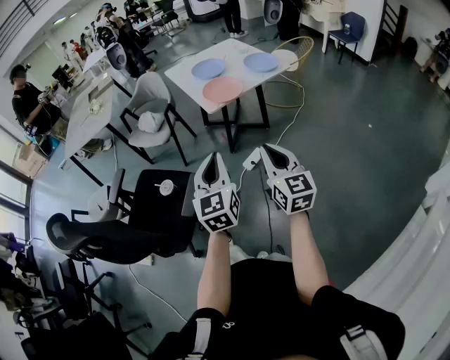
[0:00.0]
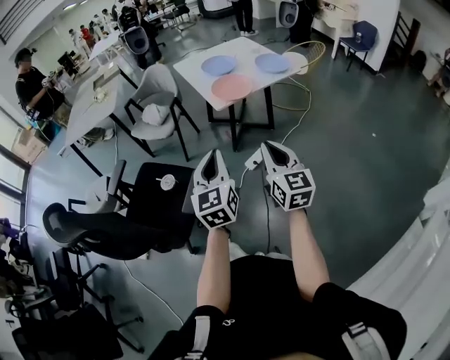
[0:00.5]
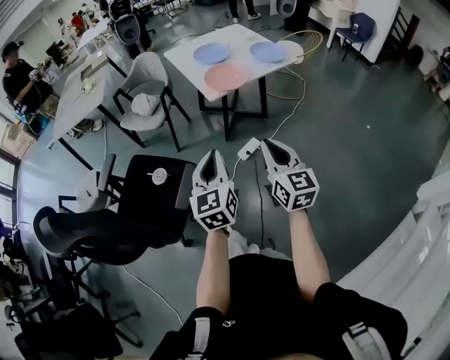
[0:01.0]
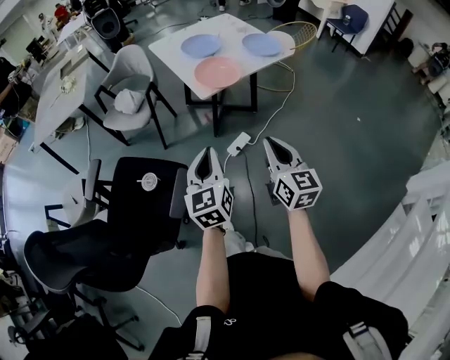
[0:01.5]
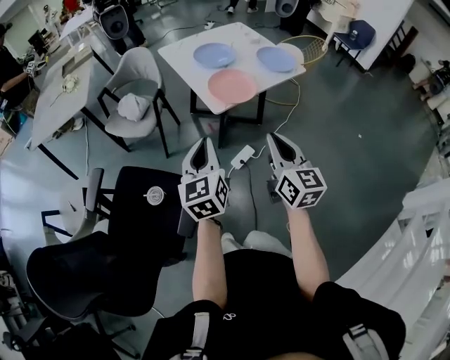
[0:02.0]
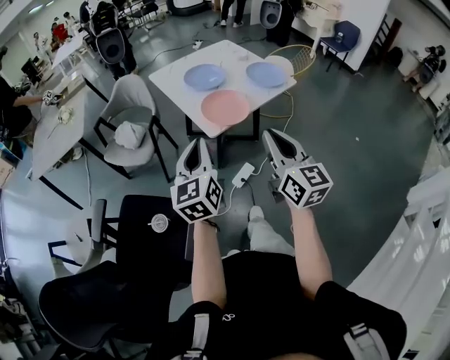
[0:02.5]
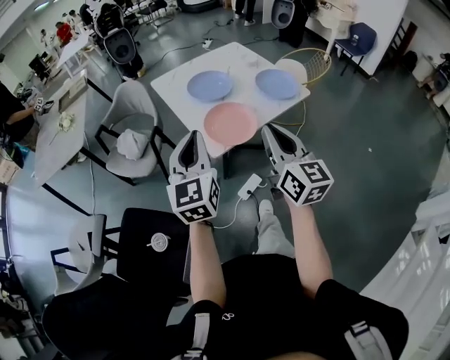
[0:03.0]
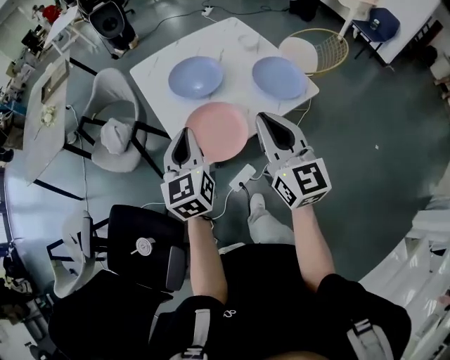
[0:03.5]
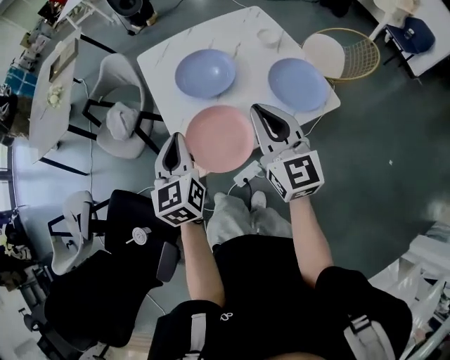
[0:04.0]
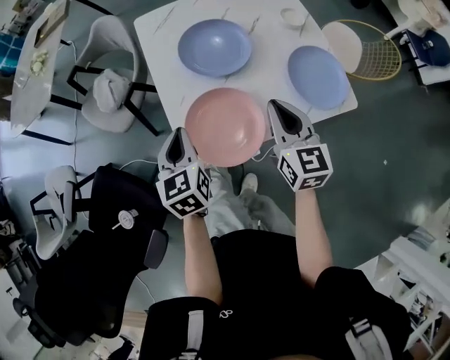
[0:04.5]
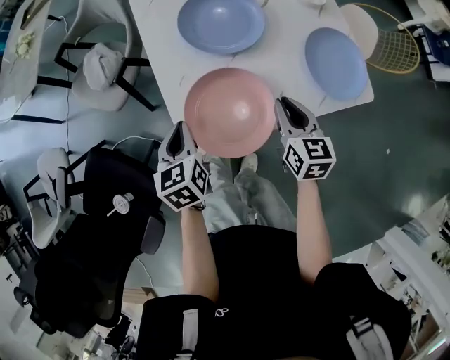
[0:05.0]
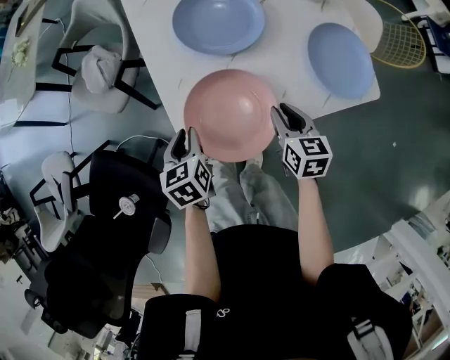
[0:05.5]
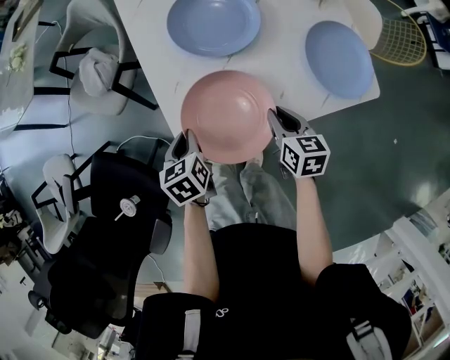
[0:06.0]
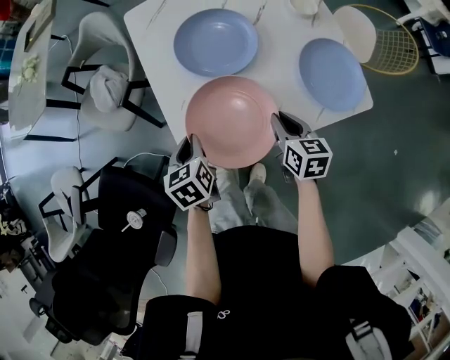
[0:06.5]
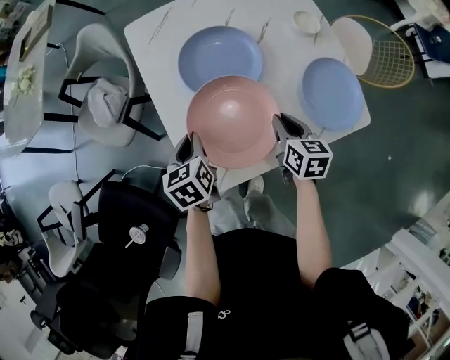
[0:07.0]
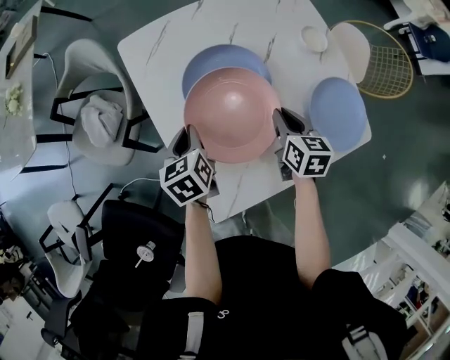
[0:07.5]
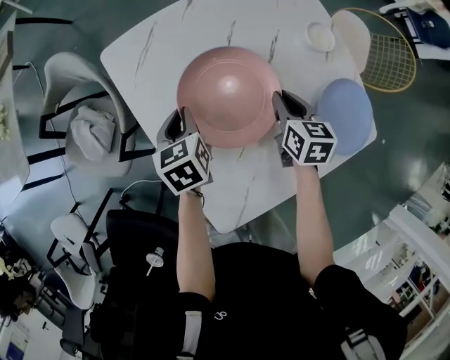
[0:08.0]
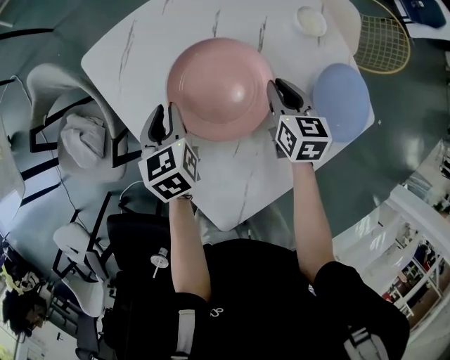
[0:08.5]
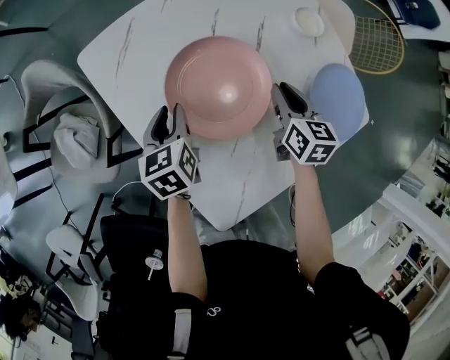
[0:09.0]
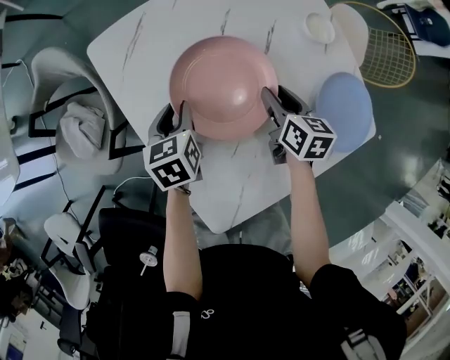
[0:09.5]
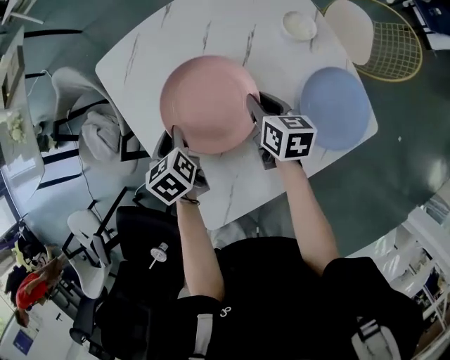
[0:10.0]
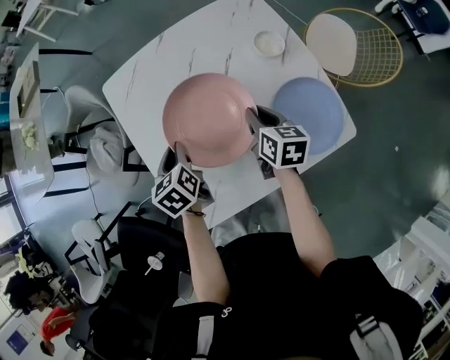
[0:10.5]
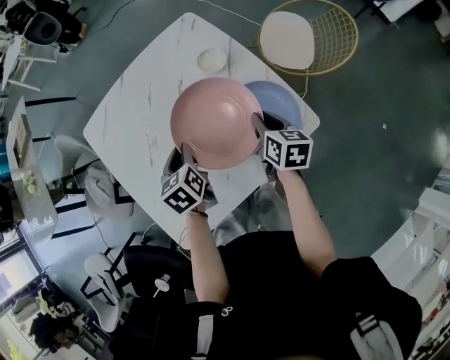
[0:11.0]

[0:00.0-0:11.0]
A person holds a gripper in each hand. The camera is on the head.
0:00.0 to 0:02.0: The left gripper moves forward and to the left, roughly 25 cm, while the right gripper moves forward, approximately 20 cm.
0:02.0 to 0:03.5: The grippers both shift forward by roughly 30 cm.
0:03.5 to 0:05.5: The grippers both shift downward by about 30 cm. The left gripper tips its fingers downward by about 40 degrees; the right gripper angles its fingers downward, by about 40 degrees, and opens its fingers.
0:05.5 to 0:07.5: Both grippers move forward, roughly 20 cm.
0:07.5 to 0:09.0: Both grippers move forward, roughly 10 cm. The left gripper opens up.
0:09.0 to 0:11.0: The left gripper shifts roughly 20 cm to the right. The right gripper shifts roughly 20 cm to the right and backward, and opens, then closes again.

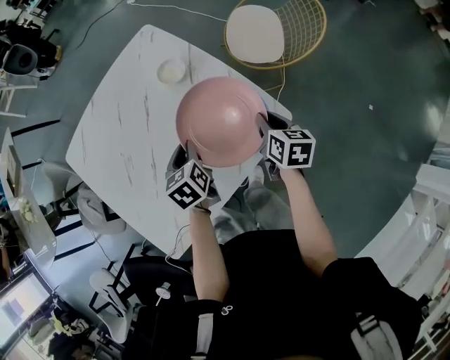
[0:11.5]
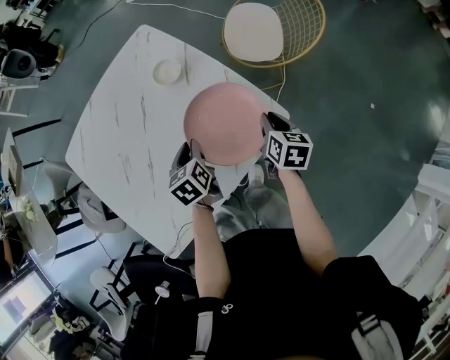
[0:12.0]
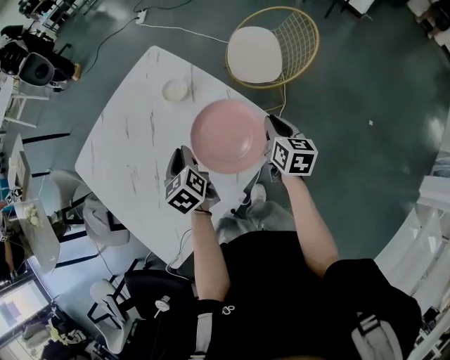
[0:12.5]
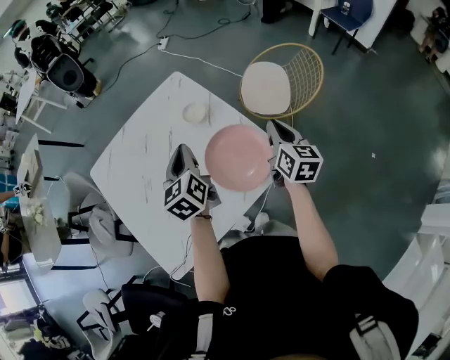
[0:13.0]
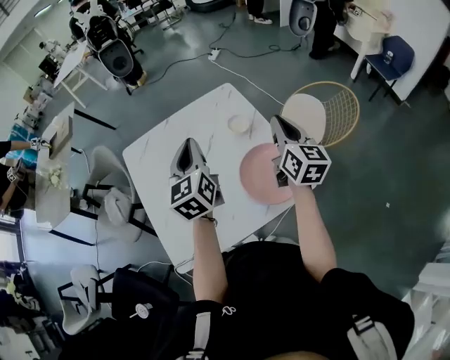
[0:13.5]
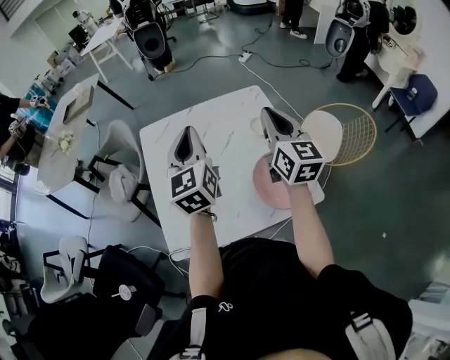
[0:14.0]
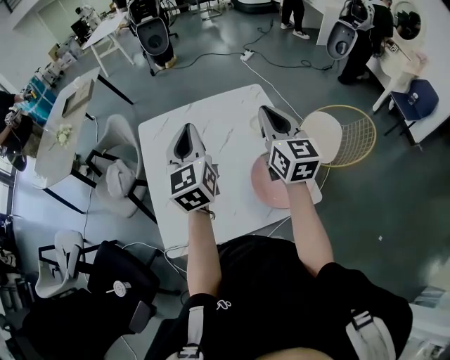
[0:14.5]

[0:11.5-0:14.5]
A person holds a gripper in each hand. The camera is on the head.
0:11.5 to 0:13.0: Both grippers move upward, roughly 15 cm. The right gripper turns by roughly 20 degrees, while the left gripper rotates roughly 30 degrees.
0:13.0 to 0:14.5: Both grippers travel together to the left and upward, about 25 cm. The left gripper rotates some 30 degrees. Meanwhile the right gripper rotates roughly 40 degrees.

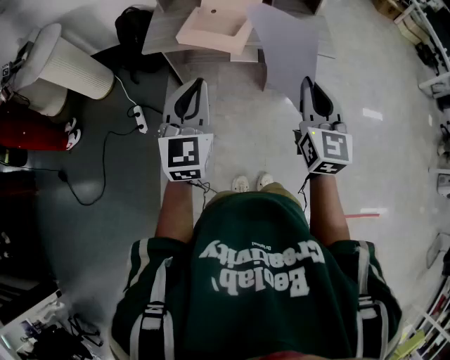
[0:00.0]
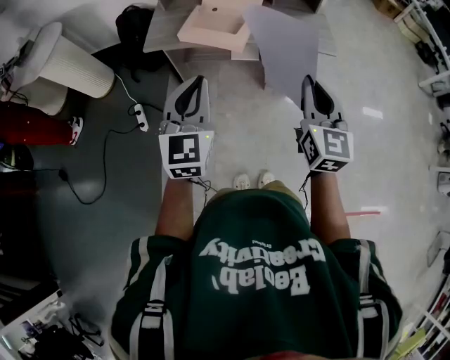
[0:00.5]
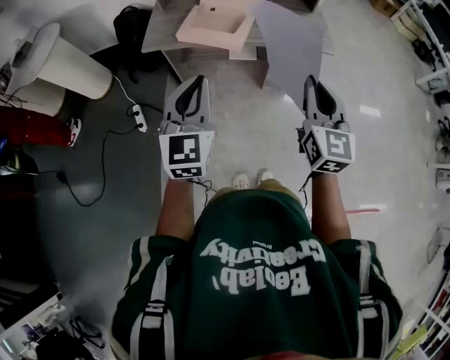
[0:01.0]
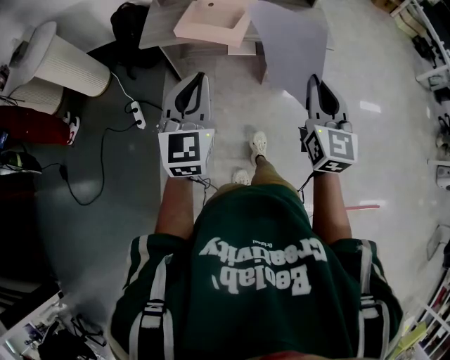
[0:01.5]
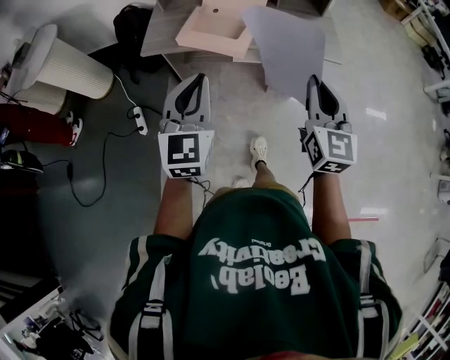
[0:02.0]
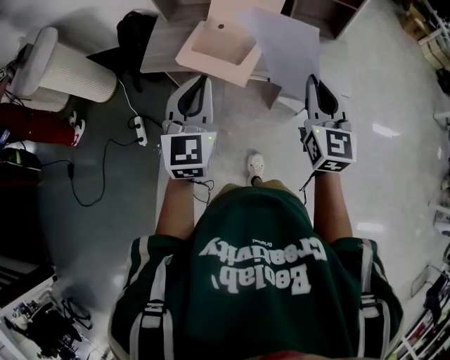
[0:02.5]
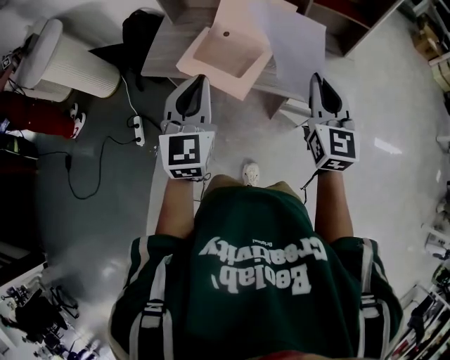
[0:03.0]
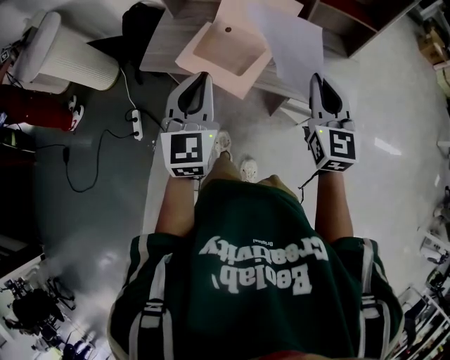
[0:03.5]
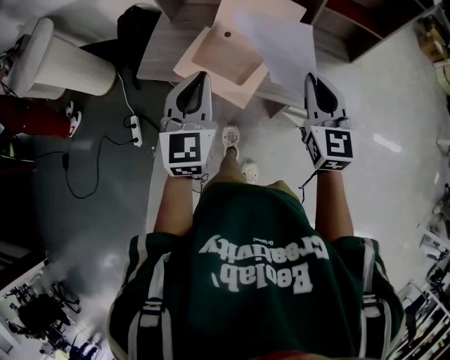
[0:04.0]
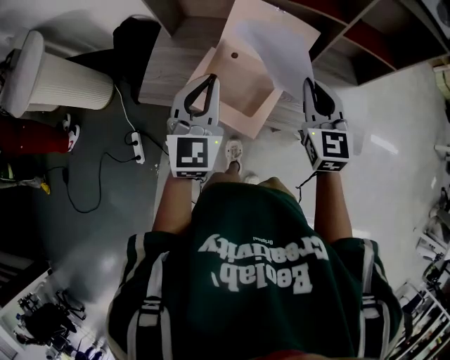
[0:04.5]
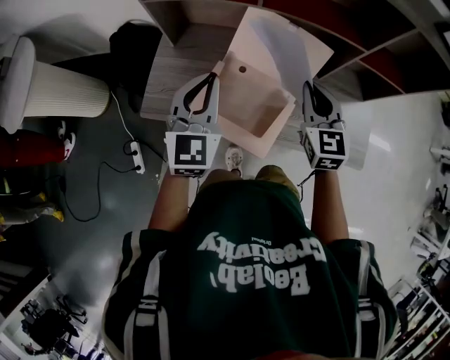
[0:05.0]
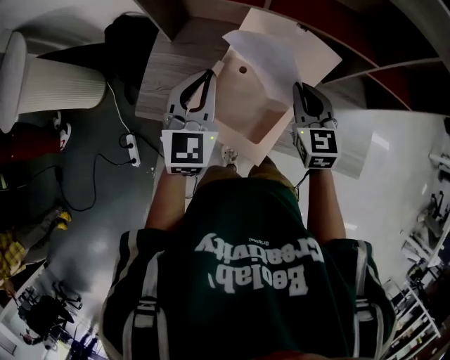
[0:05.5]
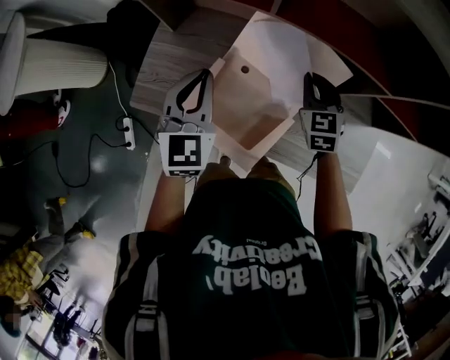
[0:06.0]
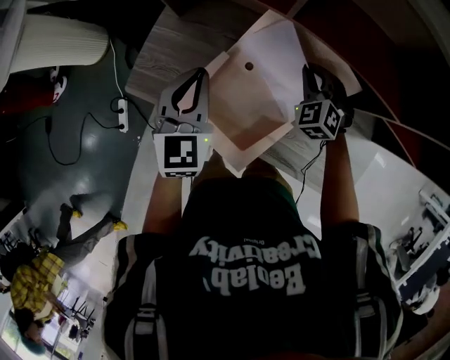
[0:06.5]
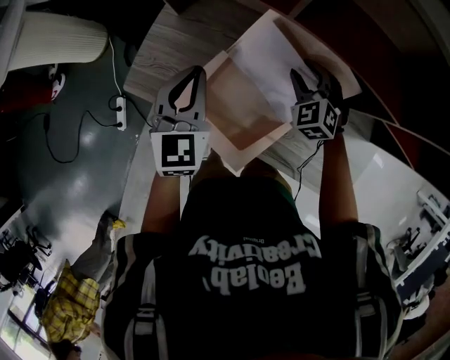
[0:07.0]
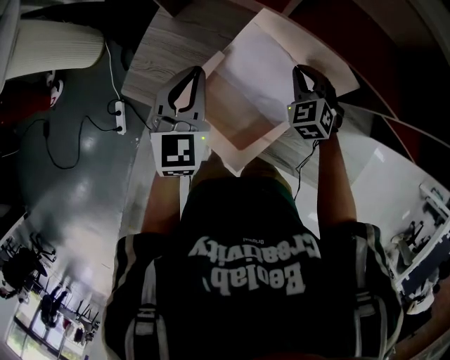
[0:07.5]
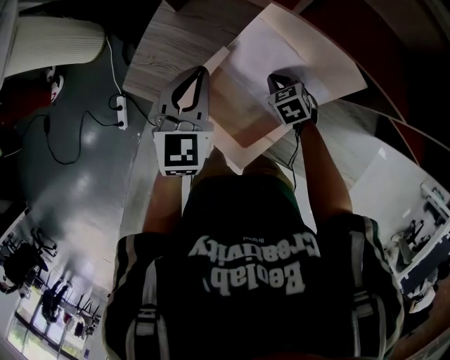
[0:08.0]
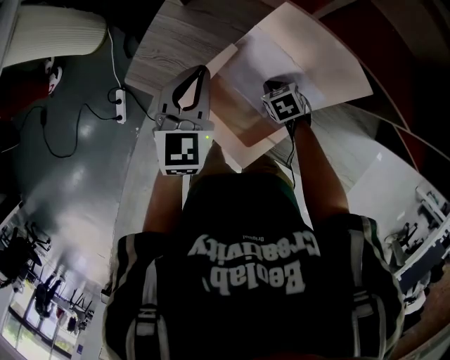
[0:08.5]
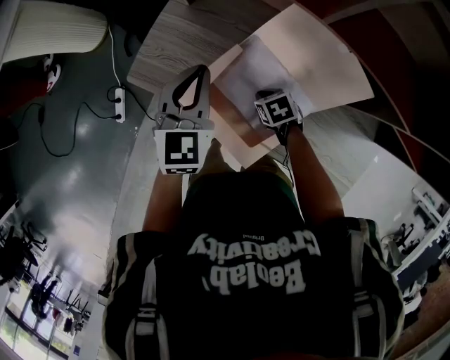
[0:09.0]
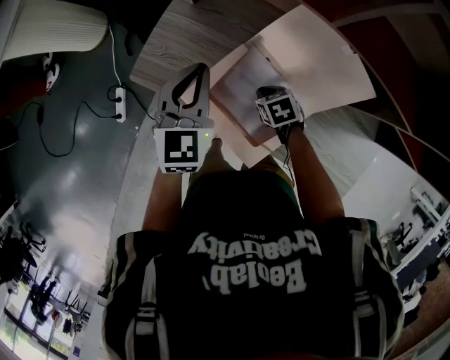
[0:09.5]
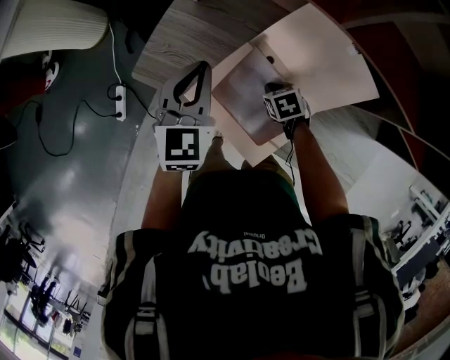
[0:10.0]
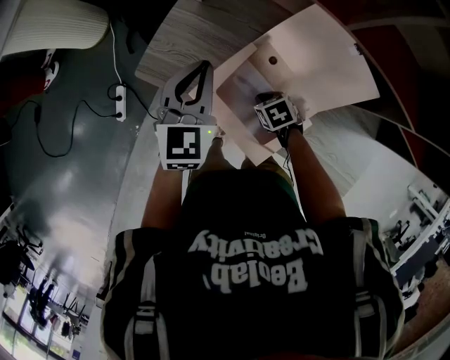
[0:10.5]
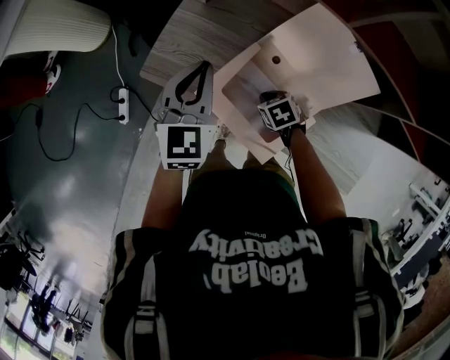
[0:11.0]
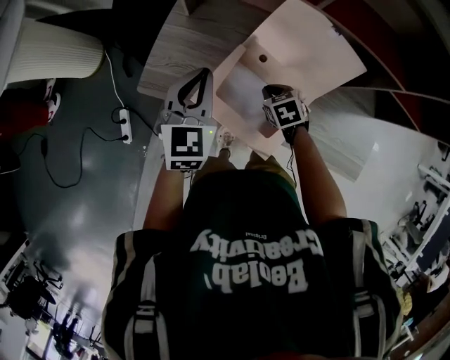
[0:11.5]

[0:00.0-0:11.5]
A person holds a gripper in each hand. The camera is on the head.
0:00.0 to 0:02.0: Both grippers move forward, some 10 cm.
0:02.0 to 0:04.0: The two grippers go approximately 30 cm forward.
0:04.0 to 0:06.0: The left gripper is displaced forward by some 35 cm; the right gripper goes approximately 40 cm forward and downward, and turns by some 30 degrees.
0:06.0 to 0:07.5: The right gripper is displaced downward by about 5 cm, changes its angle by about 30 degrees, and opens, then closes once more.
0:07.5 to 0:09.5: The right gripper moves some 20 cm, and swivels about 40 degrees; the left gripper shifts by some 10 cm.
0:09.5 to 0:11.5: The right gripper heads upward, covering approximately 5 cm; the left gripper shifts by some 5 cm.

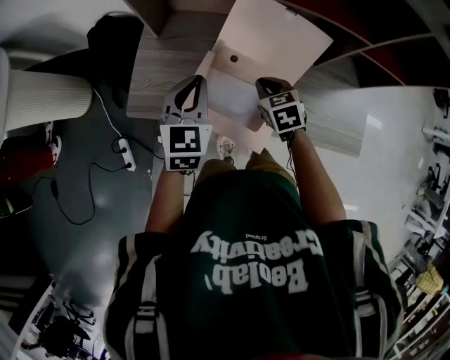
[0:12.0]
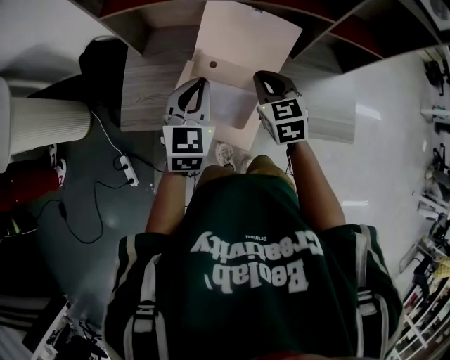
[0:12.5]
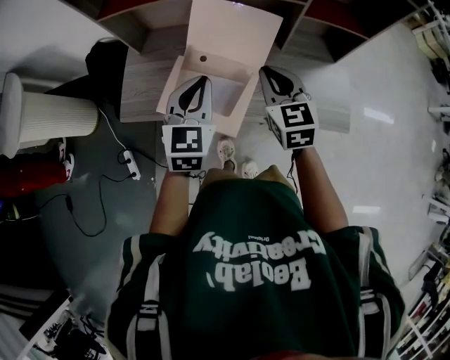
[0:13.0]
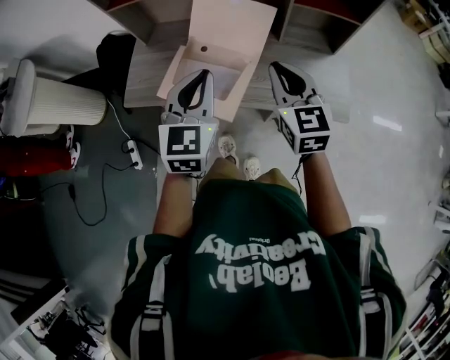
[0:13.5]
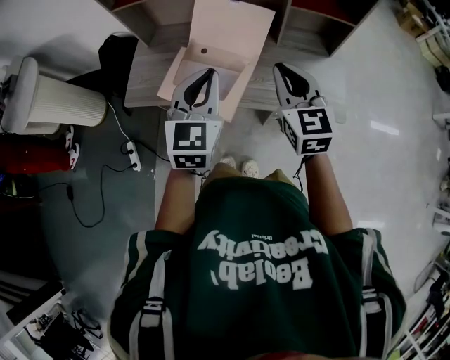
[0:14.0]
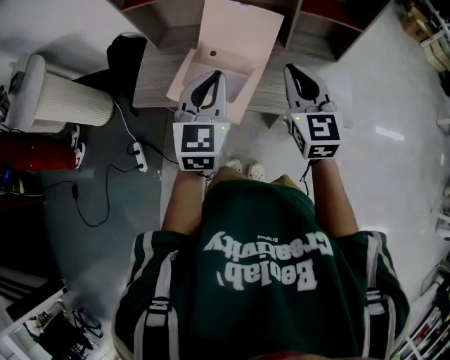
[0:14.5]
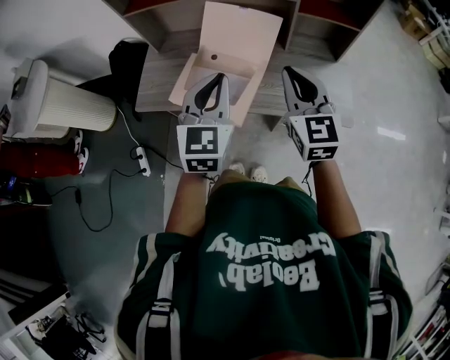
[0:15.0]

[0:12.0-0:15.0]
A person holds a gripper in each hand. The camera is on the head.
0:12.0 to 0:13.5: The left gripper is displaced to the right, backward and upward by about 30 cm; the right gripper heads upward, backward and to the right, covering about 35 cm, and points its fingers some 40 degrees further upward.
0:13.5 to 0:15.0: The right gripper ends up approximately 5 cm from where it was.
